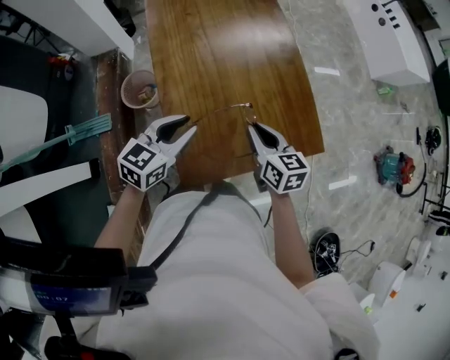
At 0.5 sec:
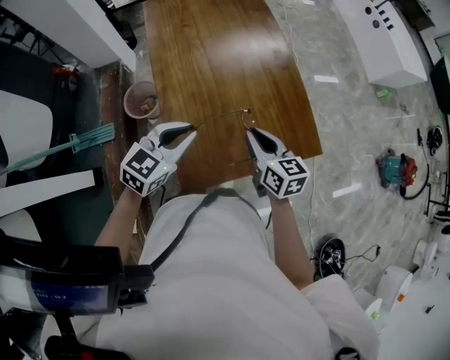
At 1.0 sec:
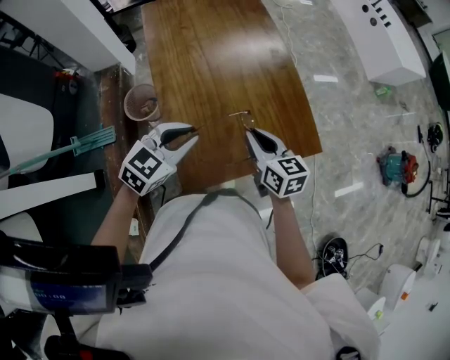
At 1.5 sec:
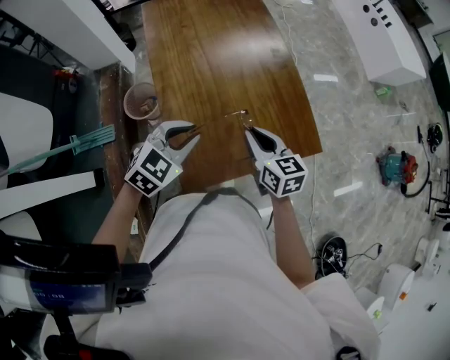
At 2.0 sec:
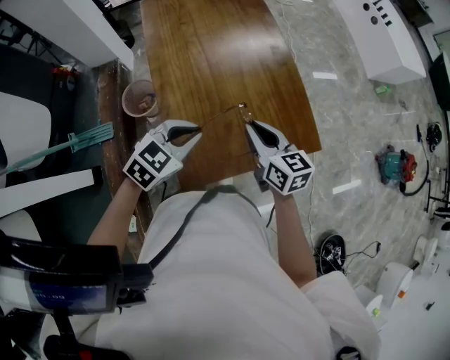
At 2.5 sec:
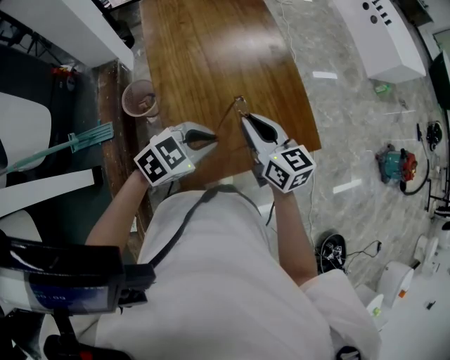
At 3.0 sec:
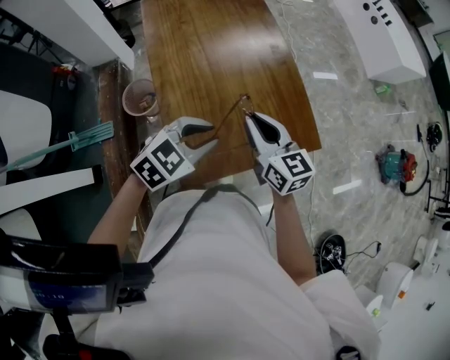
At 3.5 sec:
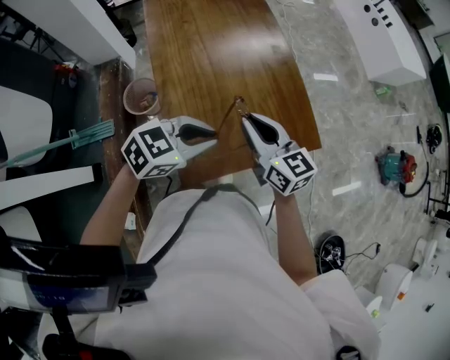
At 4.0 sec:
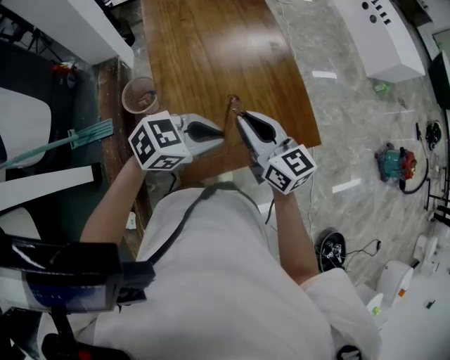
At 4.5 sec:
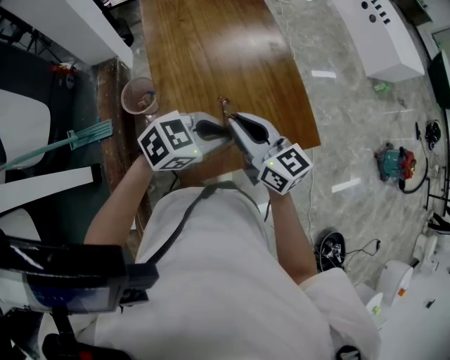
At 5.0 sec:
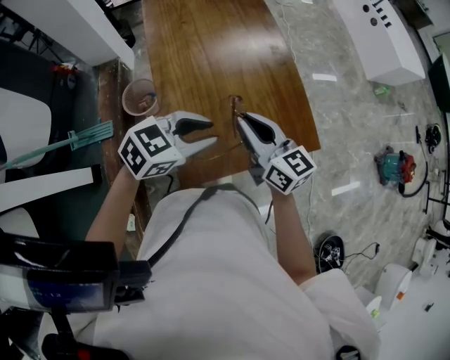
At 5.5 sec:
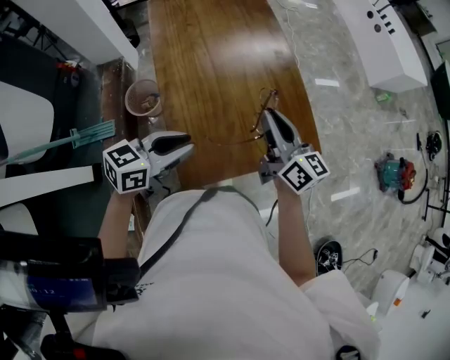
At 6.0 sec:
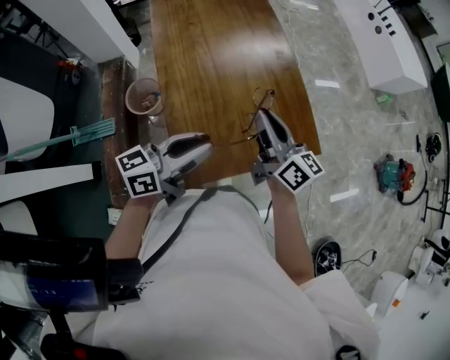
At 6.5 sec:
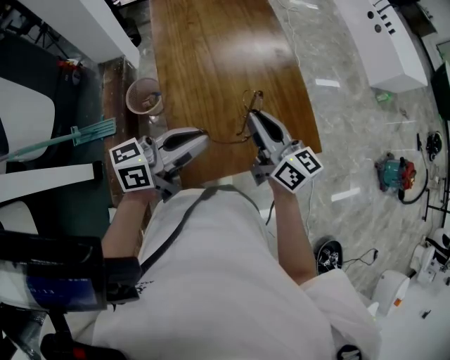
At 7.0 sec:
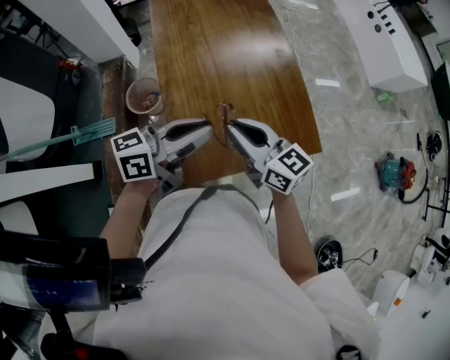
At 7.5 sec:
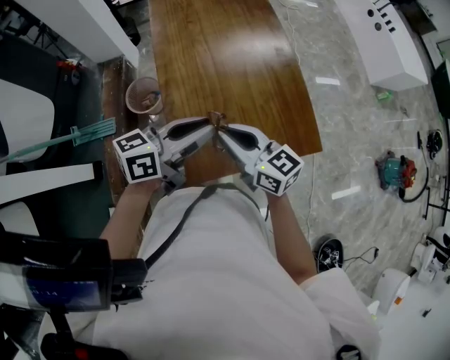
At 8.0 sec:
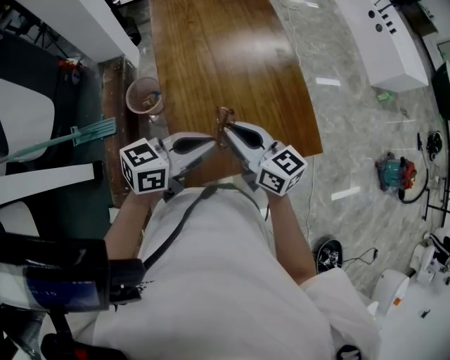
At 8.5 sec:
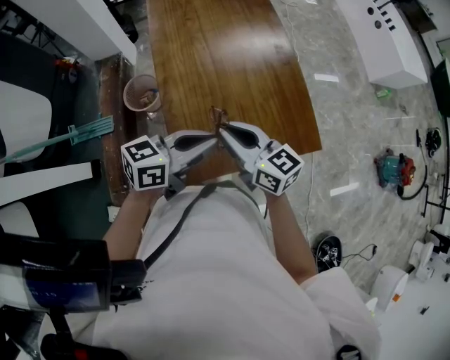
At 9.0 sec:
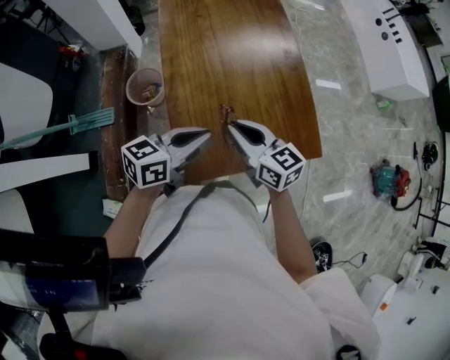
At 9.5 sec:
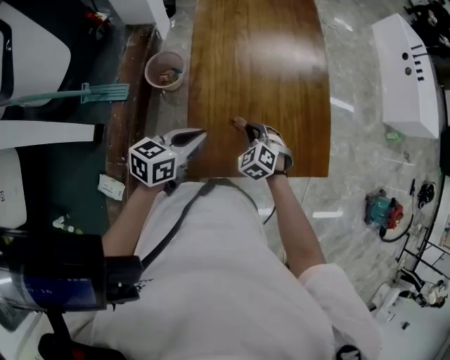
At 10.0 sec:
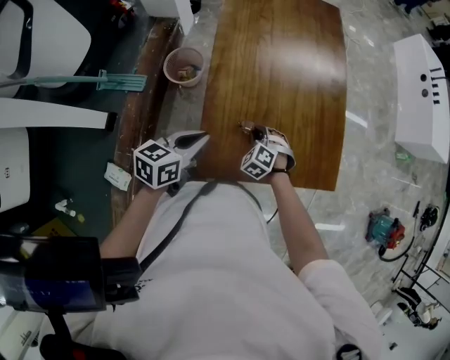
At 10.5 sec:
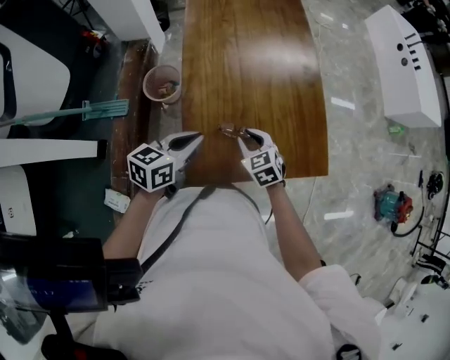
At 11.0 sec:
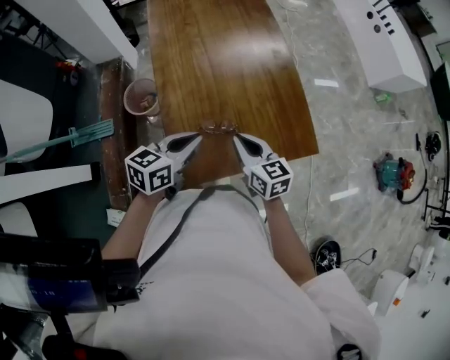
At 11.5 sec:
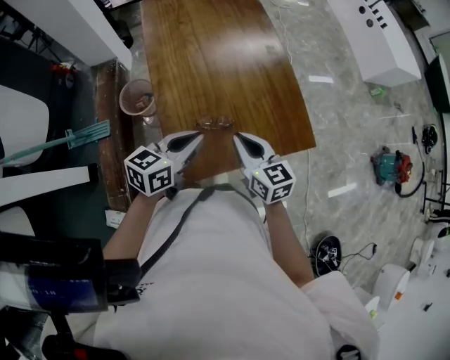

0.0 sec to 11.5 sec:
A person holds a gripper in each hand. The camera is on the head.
0.0 sec to 2.0 sec: The right gripper shifts approximately 5 cm upward. The left gripper shifts approximately 5 cm to the right, swivels about 30 degrees, and closes up.
2.0 sec to 4.0 sec: The right gripper shifts by some 5 cm, while the left gripper goes some 5 cm to the right, and turns by approximately 20 degrees.
4.0 sec to 6.0 sec: The right gripper changes its angle by approximately 20 degrees, while the left gripper ends up approximately 5 cm from where it was, and tilts its fingers approximately 30 degrees upward.
6.0 sec to 7.5 sec: The right gripper shifts some 10 cm to the left and backward, and changes its angle by about 30 degrees.
7.5 sec to 9.5 sec: The left gripper is displaced downward and to the left by about 15 cm, and changes its angle by approximately 30 degrees, while the right gripper goes about 20 cm downward, and angles its fingers downward, by some 50 degrees.
9.5 sec to 11.5 sec: The left gripper shifts about 10 cm to the right; the right gripper goes roughly 15 cm upward and backward, and rotates around the line of its fingers by roughly 60 degrees, clockwise from behind.

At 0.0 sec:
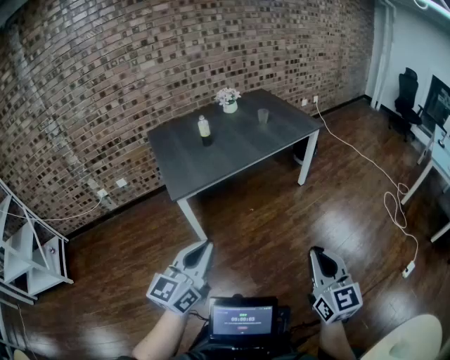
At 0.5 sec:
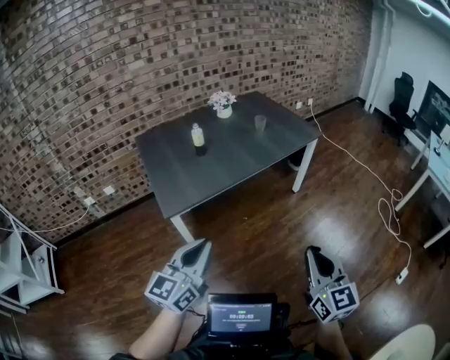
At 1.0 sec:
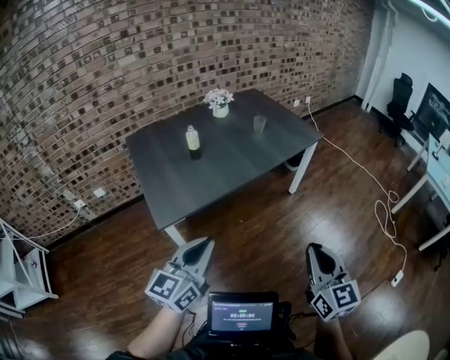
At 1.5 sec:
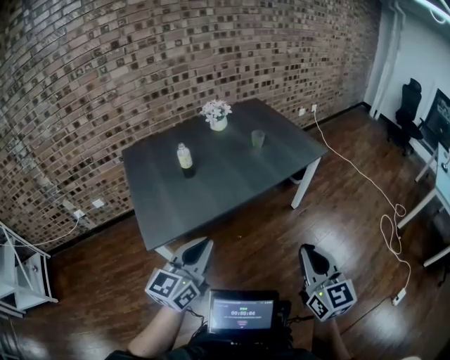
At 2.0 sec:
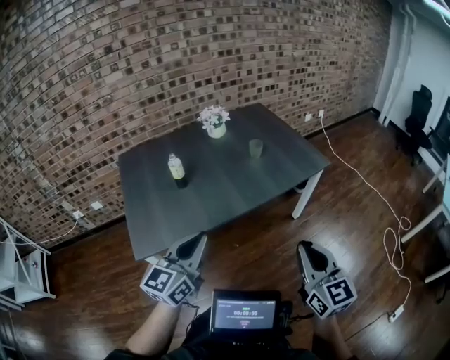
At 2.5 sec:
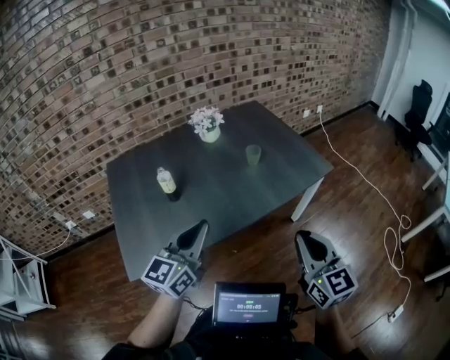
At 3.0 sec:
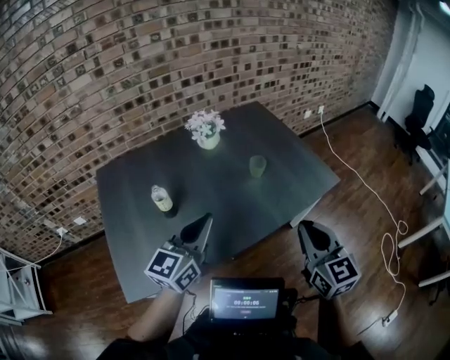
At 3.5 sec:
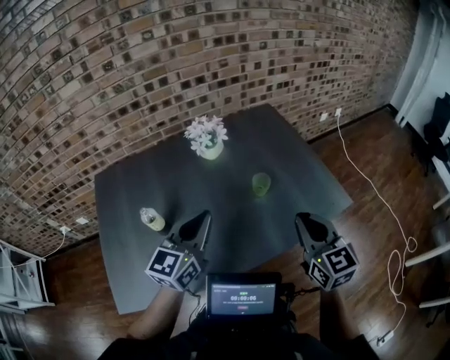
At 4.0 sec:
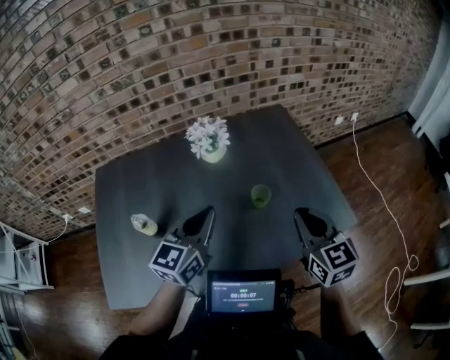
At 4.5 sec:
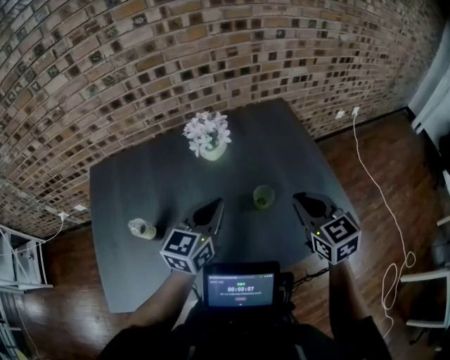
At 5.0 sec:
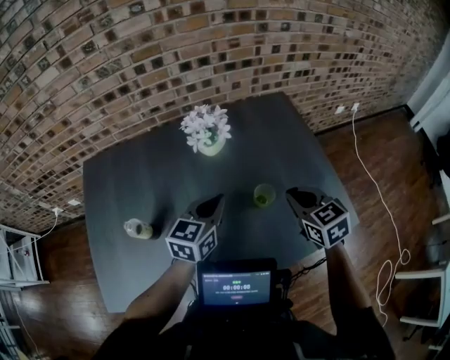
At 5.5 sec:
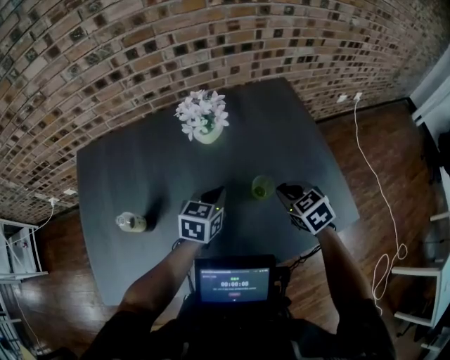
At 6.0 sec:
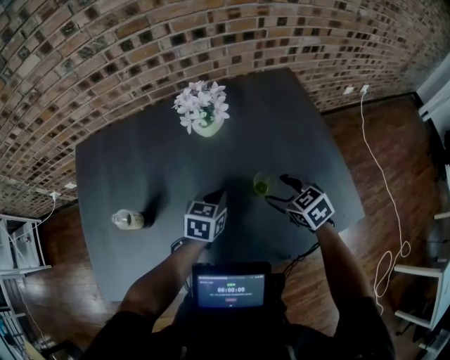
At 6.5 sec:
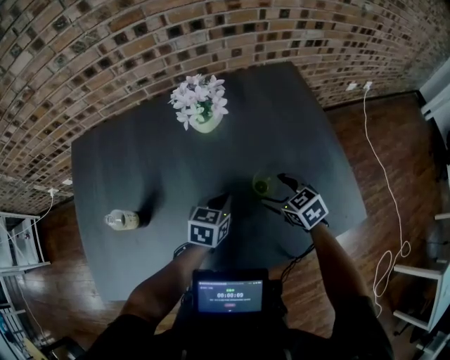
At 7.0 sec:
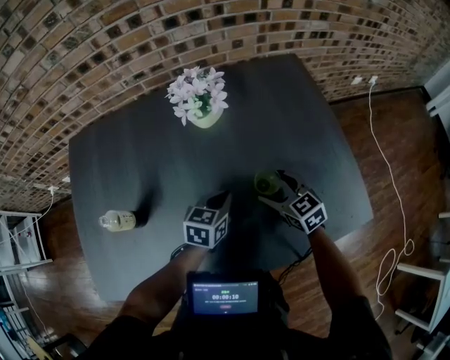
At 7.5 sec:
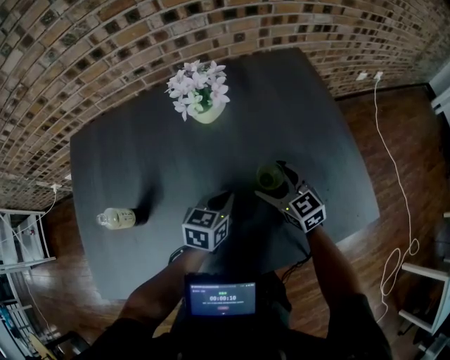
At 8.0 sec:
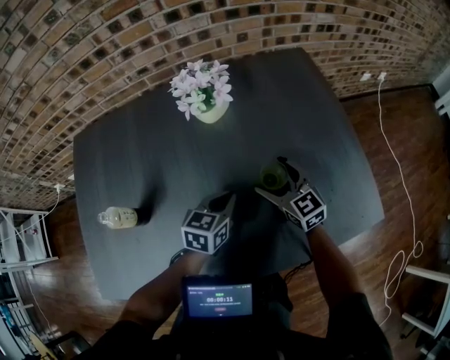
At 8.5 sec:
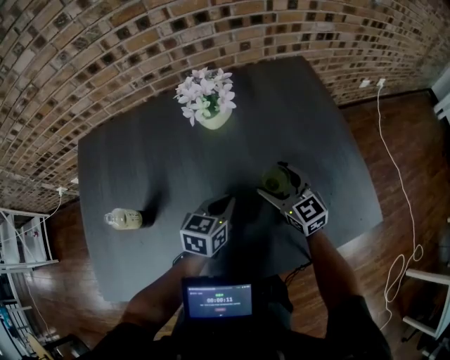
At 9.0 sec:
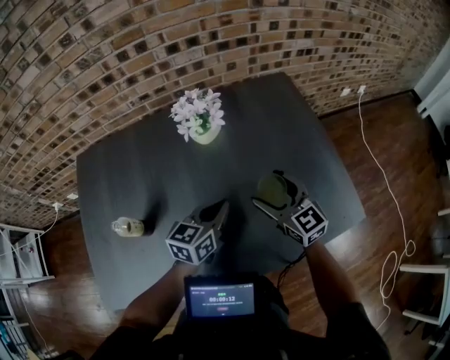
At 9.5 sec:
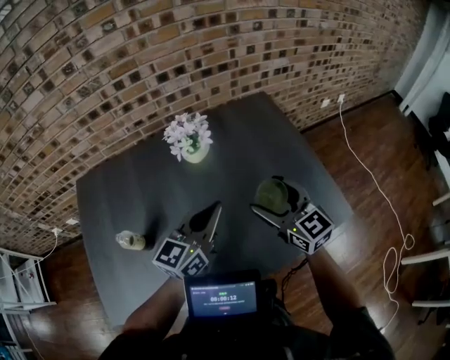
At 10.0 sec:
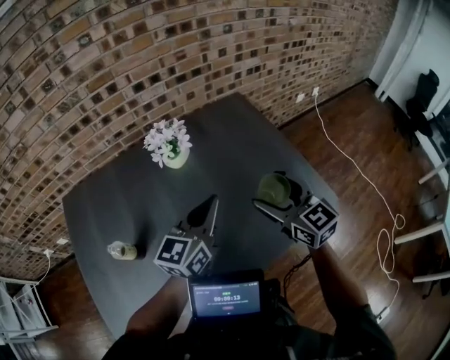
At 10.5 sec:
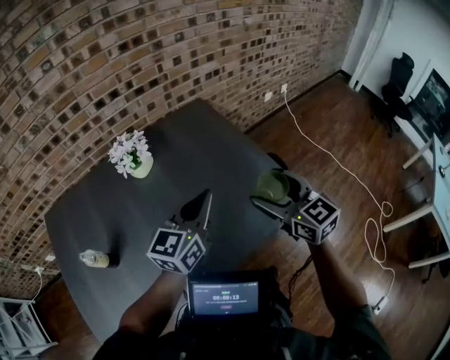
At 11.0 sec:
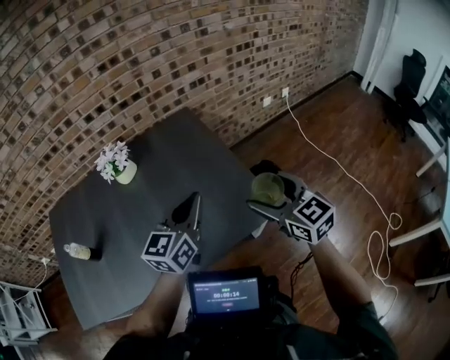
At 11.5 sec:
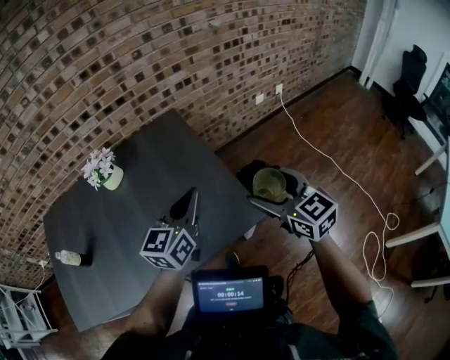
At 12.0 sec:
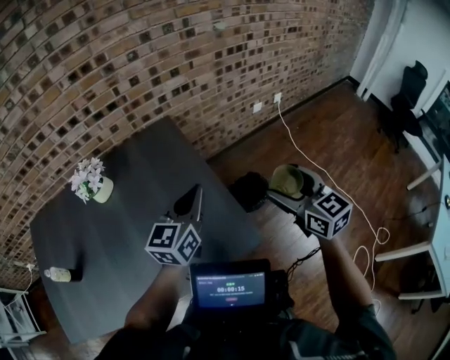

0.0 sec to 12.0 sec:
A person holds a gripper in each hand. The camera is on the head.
0.0 sec to 2.0 sec: The two grippers travel together, forward, some 40 cm.
2.0 sec to 4.0 sec: The two grippers travel together, forward, some 50 cm.
4.0 sec to 6.0 sec: The grippers both shift downward and forward by approximately 25 cm. The right gripper points its fingers about 30 degrees further downward, and opens its fingers; the left gripper angles its fingers downward, by approximately 30 degrees.
6.0 sec to 8.0 sec: The right gripper ends up approximately 5 cm from where it was, and rotates about 30 degrees.
8.0 sec to 10.0 sec: The right gripper heads upward and backward, covering roughly 25 cm. Meanwhile the left gripper goes about 25 cm upward, and tips its fingers upward by about 30 degrees.
10.0 sec to 12.0 sec: Both grippers travel together to the right, about 40 cm.

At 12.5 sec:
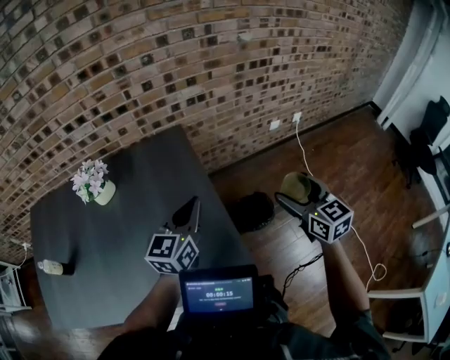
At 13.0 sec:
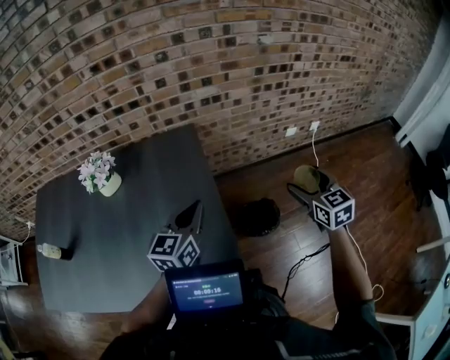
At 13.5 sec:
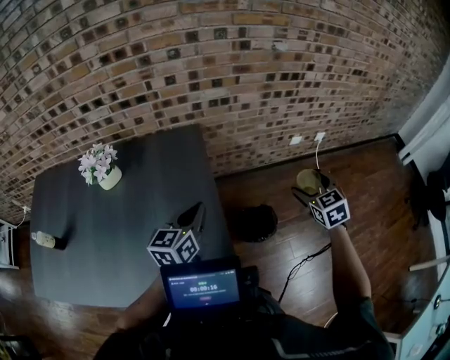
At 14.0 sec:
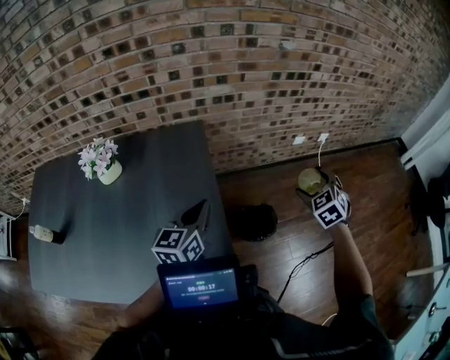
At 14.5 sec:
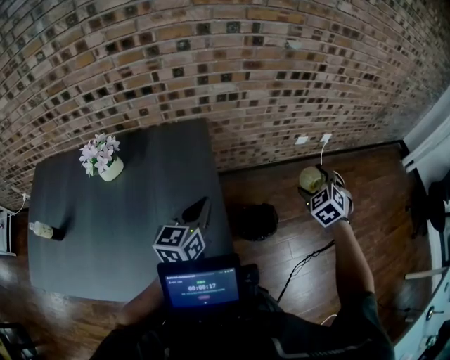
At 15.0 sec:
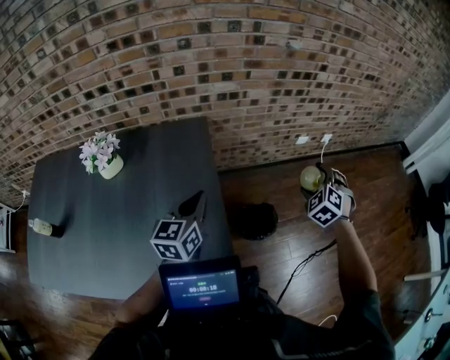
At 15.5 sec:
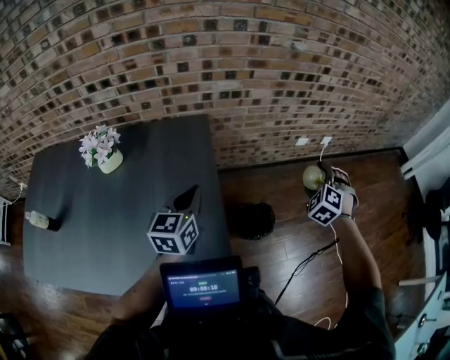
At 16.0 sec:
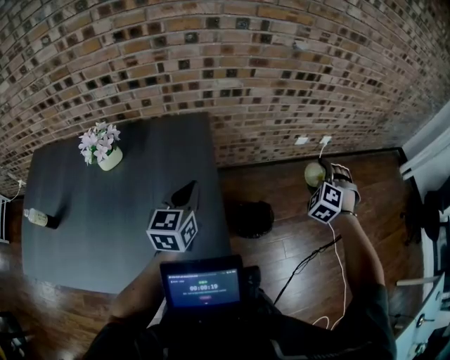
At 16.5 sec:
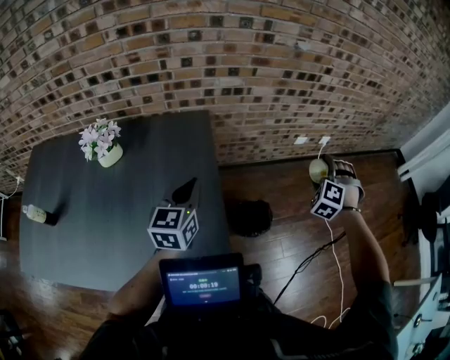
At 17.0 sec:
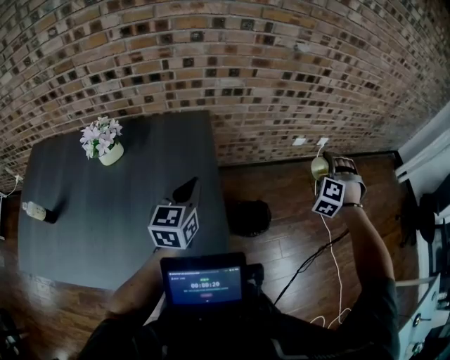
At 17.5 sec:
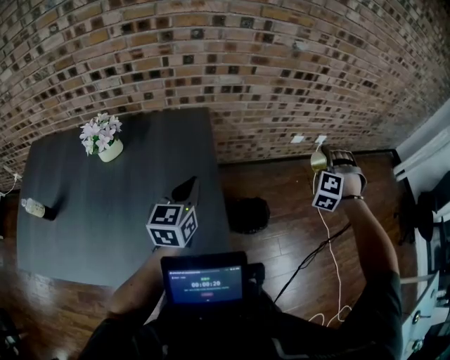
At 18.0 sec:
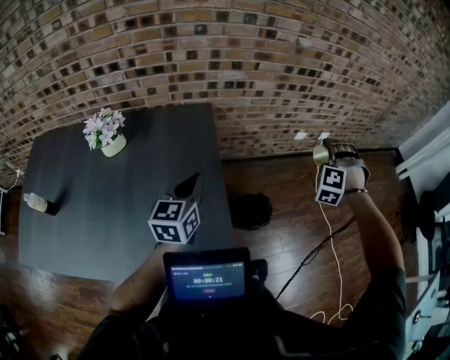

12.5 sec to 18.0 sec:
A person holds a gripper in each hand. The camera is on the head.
12.5 sec to 14.5 sec: The left gripper heads forward, covering roughly 5 cm; the right gripper is displaced forward, downward and to the right by approximately 20 cm, and rotates around the line of its fingers by approximately 40 degrees, counterclockwise from behind.
14.5 sec to 16.0 sec: The right gripper rotates roughly 30 degrees.
16.0 sec to 18.0 sec: The right gripper moves upward, about 5 cm, and changes its angle by some 20 degrees.
